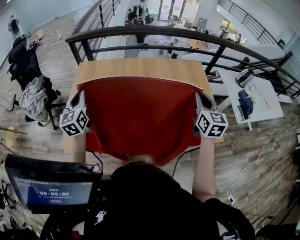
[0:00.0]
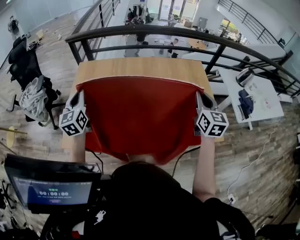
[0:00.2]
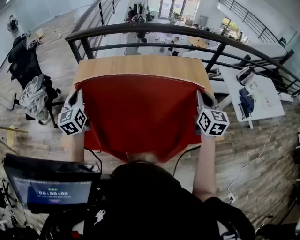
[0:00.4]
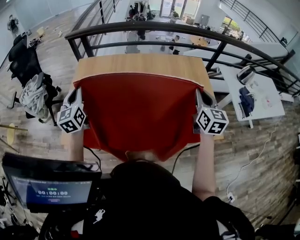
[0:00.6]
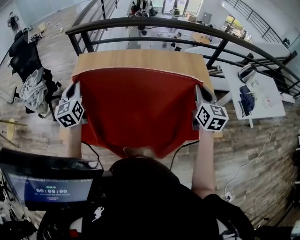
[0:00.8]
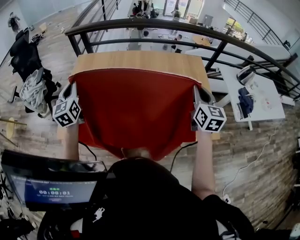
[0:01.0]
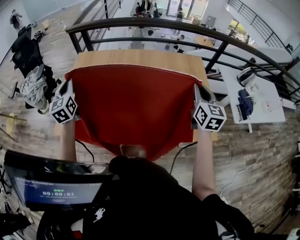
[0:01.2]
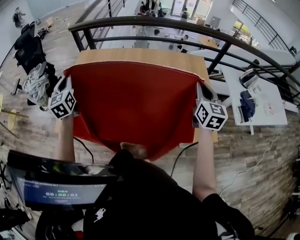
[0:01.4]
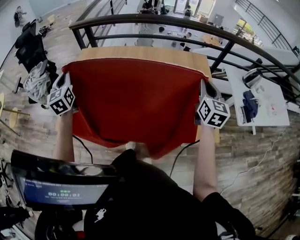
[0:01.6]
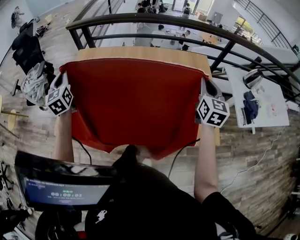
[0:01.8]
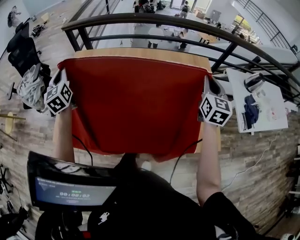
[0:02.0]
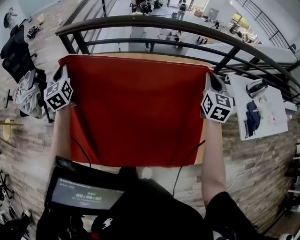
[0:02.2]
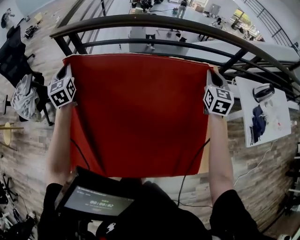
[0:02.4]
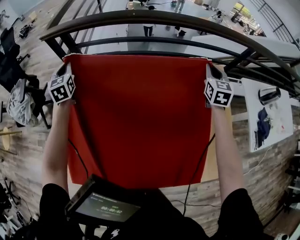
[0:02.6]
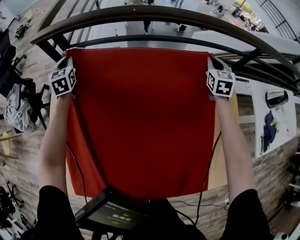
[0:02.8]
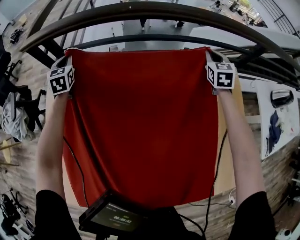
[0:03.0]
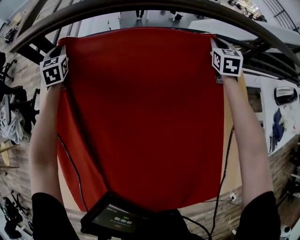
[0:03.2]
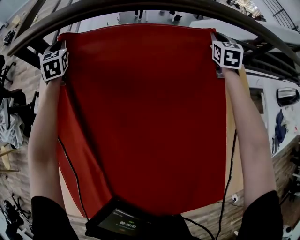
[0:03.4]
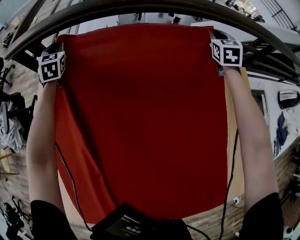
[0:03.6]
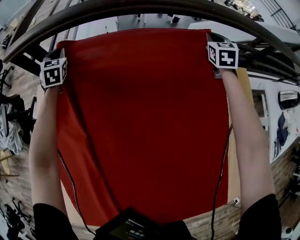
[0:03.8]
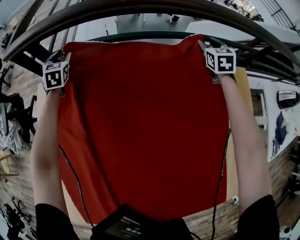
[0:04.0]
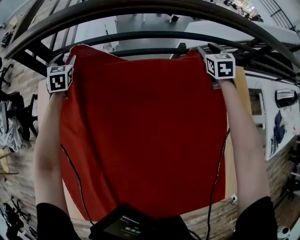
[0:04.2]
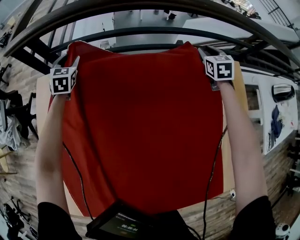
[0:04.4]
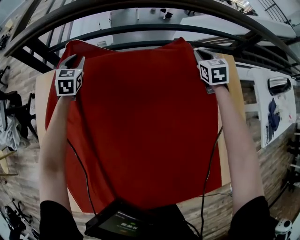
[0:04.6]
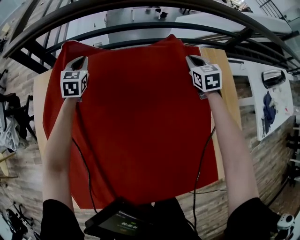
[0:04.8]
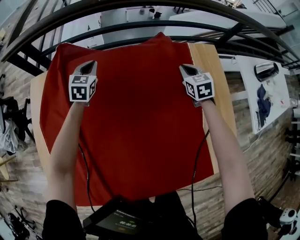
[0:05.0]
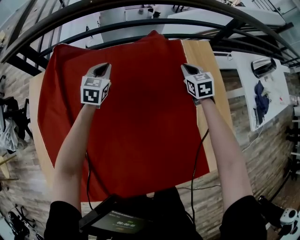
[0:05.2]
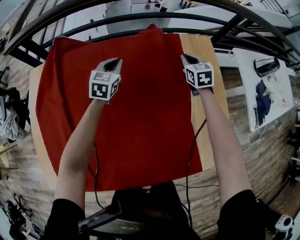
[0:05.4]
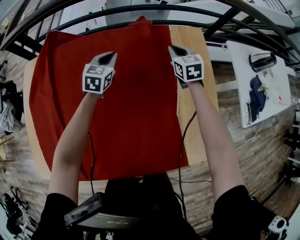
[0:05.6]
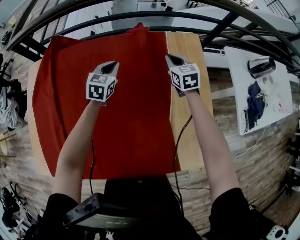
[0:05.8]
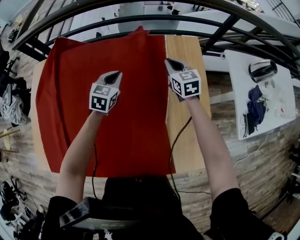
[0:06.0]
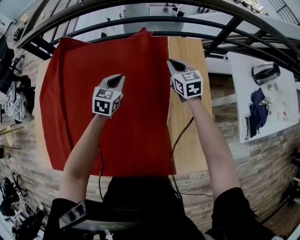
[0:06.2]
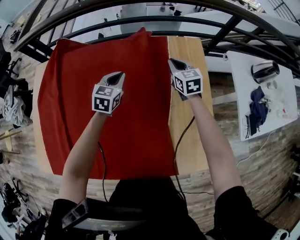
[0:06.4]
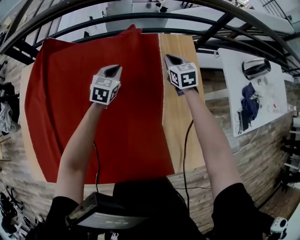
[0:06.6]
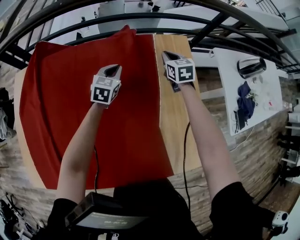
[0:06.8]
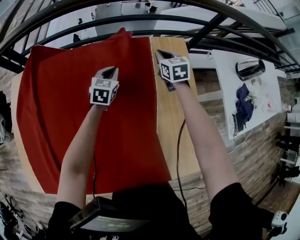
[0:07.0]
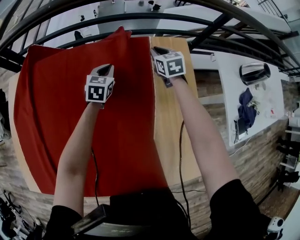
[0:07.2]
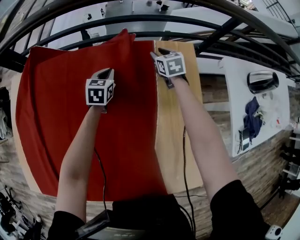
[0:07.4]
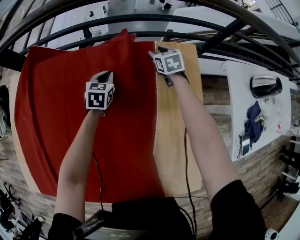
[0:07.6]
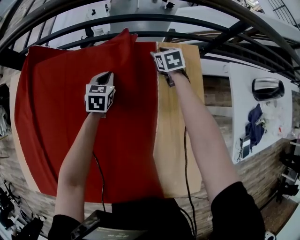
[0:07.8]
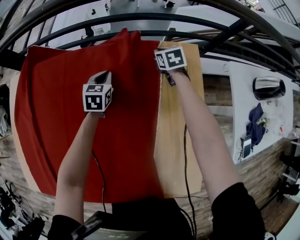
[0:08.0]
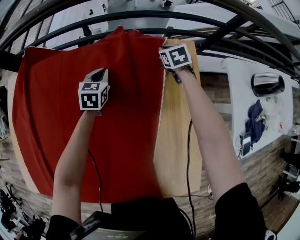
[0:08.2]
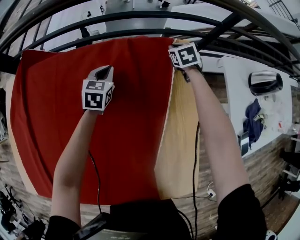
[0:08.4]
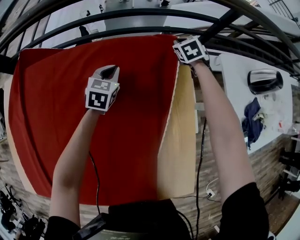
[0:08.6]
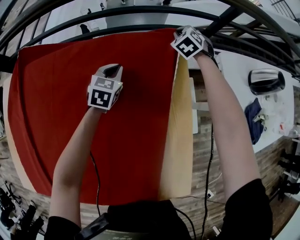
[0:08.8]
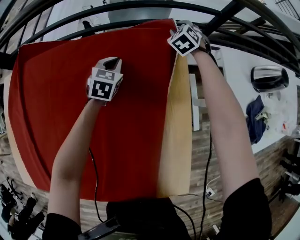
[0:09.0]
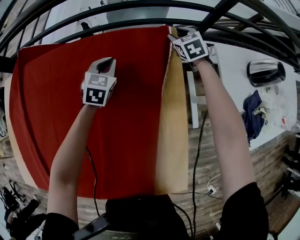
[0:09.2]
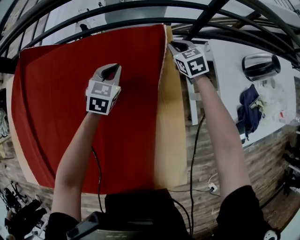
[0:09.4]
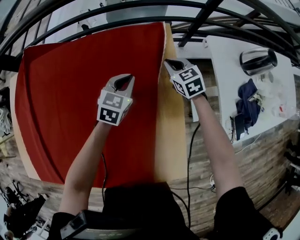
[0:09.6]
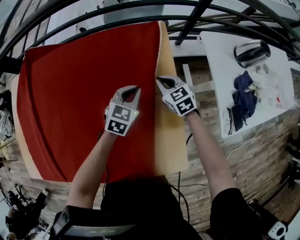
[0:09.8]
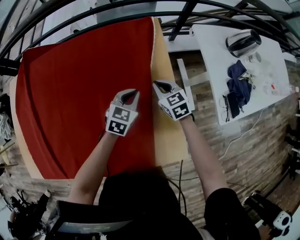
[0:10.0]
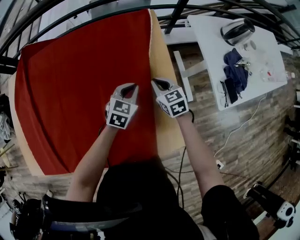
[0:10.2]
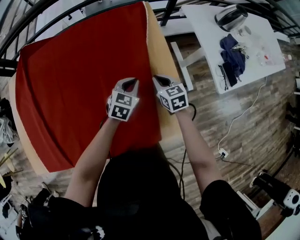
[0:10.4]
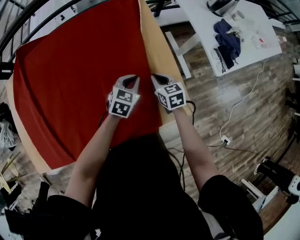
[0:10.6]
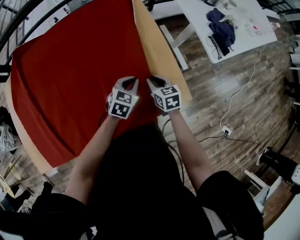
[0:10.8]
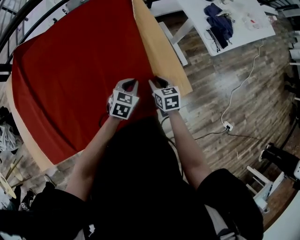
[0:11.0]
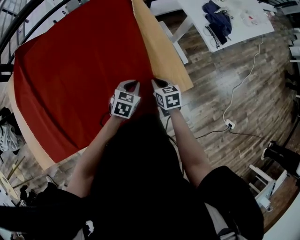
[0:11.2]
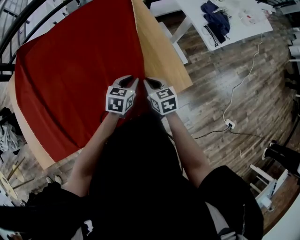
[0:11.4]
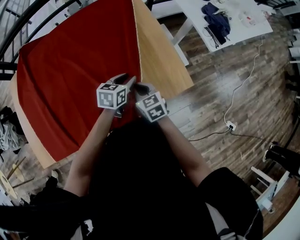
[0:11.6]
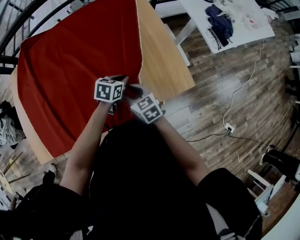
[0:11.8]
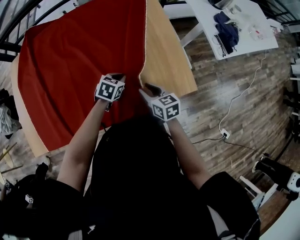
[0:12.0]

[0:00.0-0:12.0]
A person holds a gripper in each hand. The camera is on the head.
0:00.0 to 0:01.6: The right gripper moves to the right, roughly 10 cm.
0:01.6 to 0:03.0: The two grippers travel together, forward, about 60 cm. The right gripper turns by approximately 30 degrees. The left gripper rotates roughly 30 degrees.
0:03.0 to 0:04.4: Both grippers travel together downward, roughly 10 cm. The left gripper opens its fingers; the right gripper moves roughly 10 cm forward and comes back, and opens.
0:04.4 to 0:06.0: The left gripper goes roughly 60 cm to the right and backward, rotates approximately 20 degrees, and closes its fingers. Meanwhile the right gripper heads backward and to the right, covering roughly 25 cm, turns by roughly 20 degrees, and closes its fingers.
0:06.0 to 0:07.6: The grippers both shift forward and downward by roughly 20 cm. The right gripper opens its fingers.
0:07.6 to 0:09.0: The two grippers go about 15 cm to the right. The right gripper turns by about 40 degrees, and closes, then reopens.
0:09.0 to 0:10.4: Both grippers move backward, some 40 cm. The right gripper rolls clockwise, seen from behind, by approximately 50 degrees, and closes its fingers. The left gripper changes its angle by approximately 20 degrees.
0:10.4 to 0:12.0: The left gripper moves backward and to the left, about 20 cm, and opens and closes again. The right gripper moves backward, some 25 cm, and opens up.

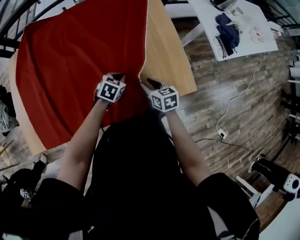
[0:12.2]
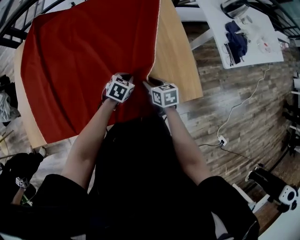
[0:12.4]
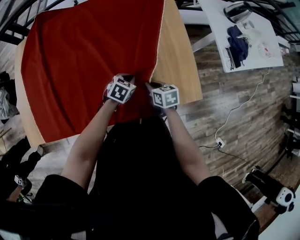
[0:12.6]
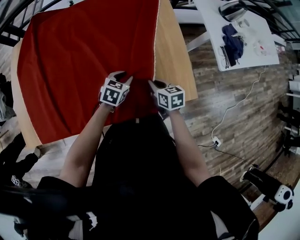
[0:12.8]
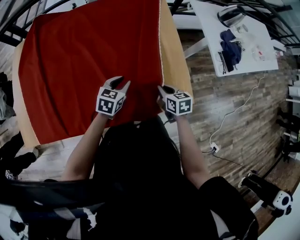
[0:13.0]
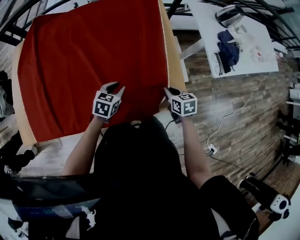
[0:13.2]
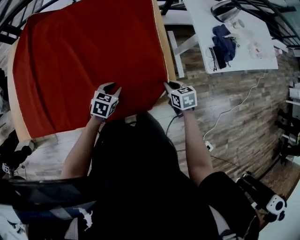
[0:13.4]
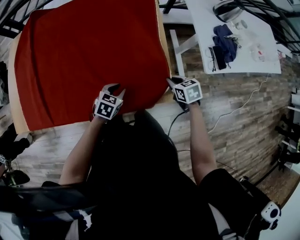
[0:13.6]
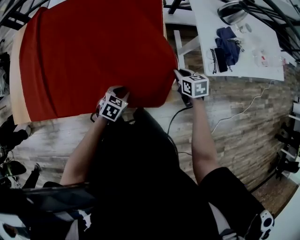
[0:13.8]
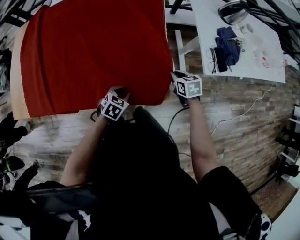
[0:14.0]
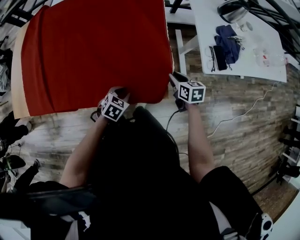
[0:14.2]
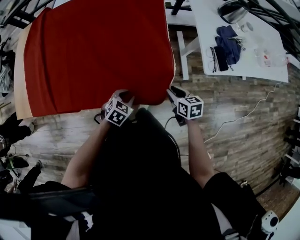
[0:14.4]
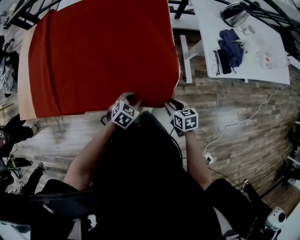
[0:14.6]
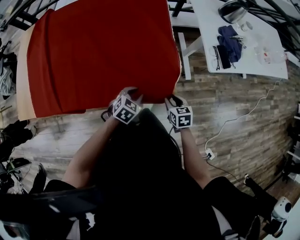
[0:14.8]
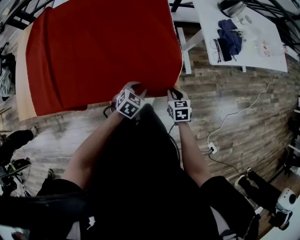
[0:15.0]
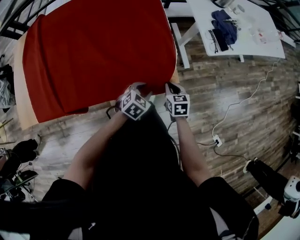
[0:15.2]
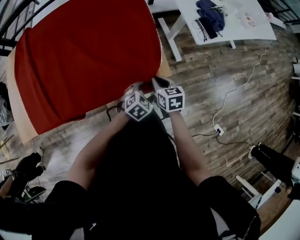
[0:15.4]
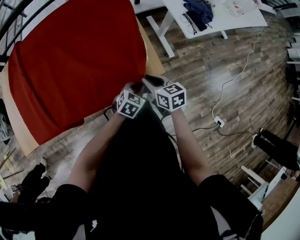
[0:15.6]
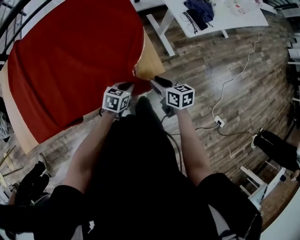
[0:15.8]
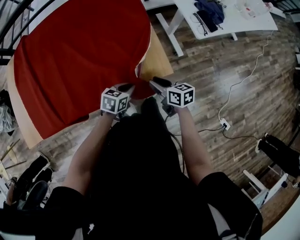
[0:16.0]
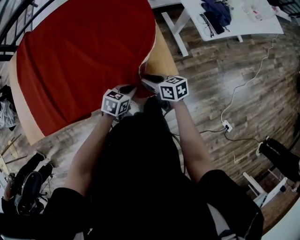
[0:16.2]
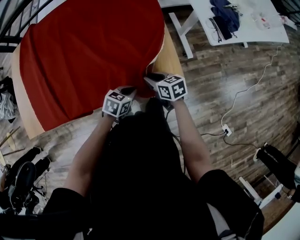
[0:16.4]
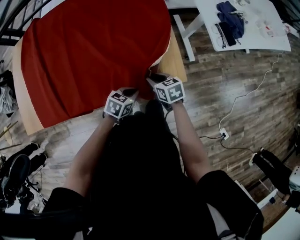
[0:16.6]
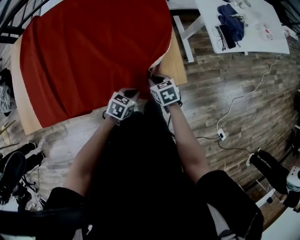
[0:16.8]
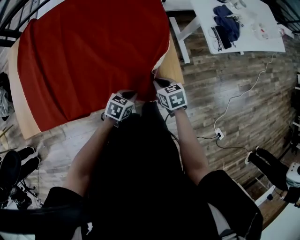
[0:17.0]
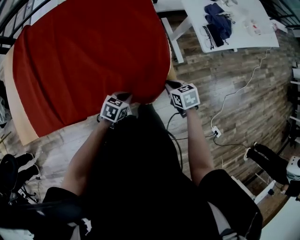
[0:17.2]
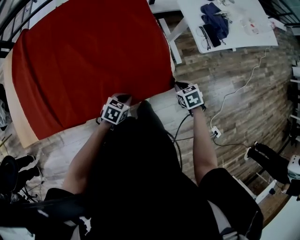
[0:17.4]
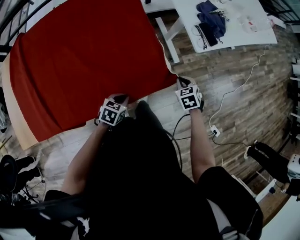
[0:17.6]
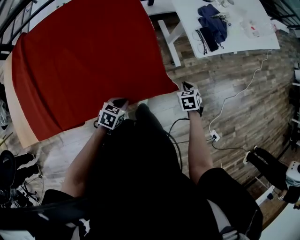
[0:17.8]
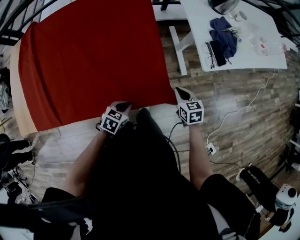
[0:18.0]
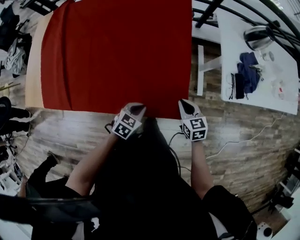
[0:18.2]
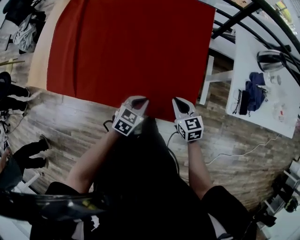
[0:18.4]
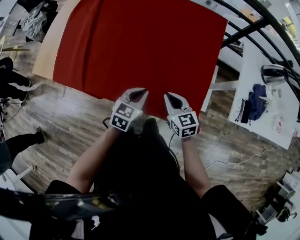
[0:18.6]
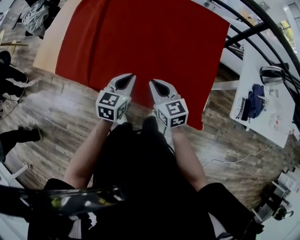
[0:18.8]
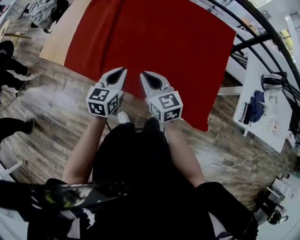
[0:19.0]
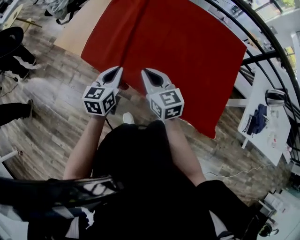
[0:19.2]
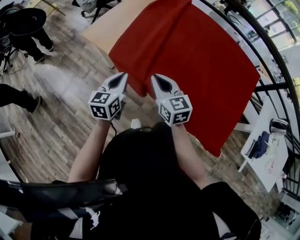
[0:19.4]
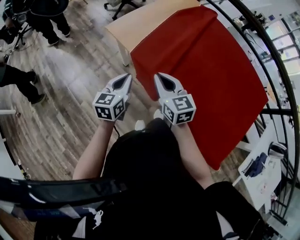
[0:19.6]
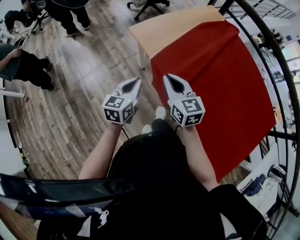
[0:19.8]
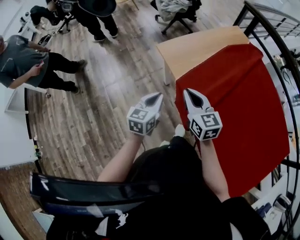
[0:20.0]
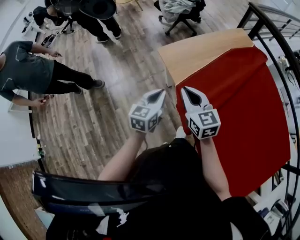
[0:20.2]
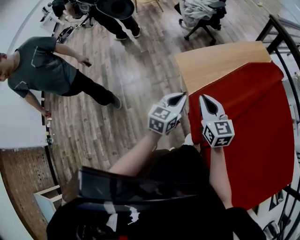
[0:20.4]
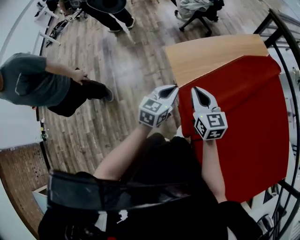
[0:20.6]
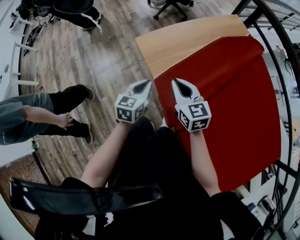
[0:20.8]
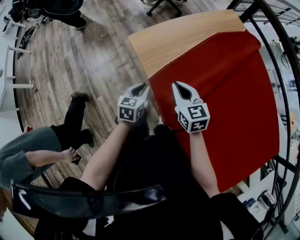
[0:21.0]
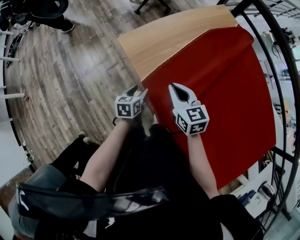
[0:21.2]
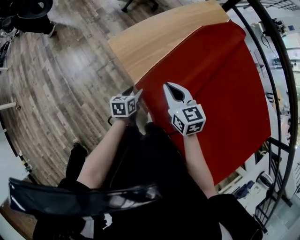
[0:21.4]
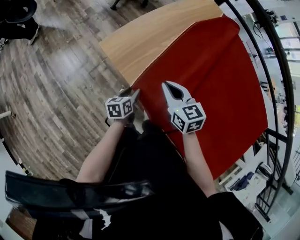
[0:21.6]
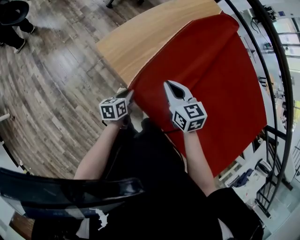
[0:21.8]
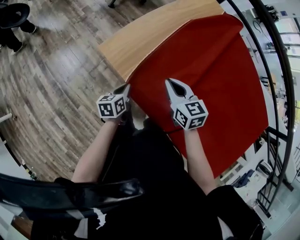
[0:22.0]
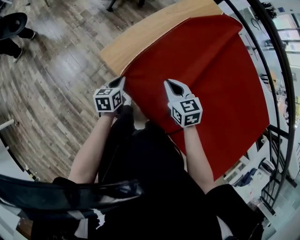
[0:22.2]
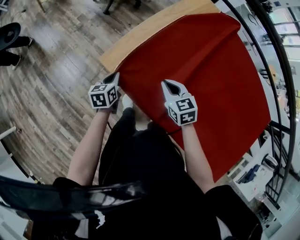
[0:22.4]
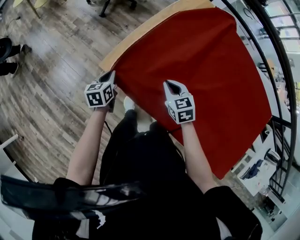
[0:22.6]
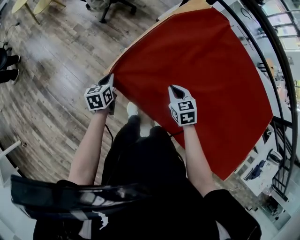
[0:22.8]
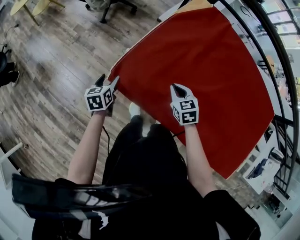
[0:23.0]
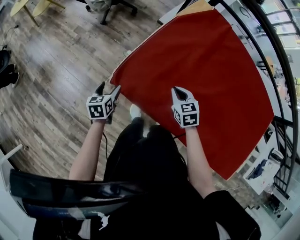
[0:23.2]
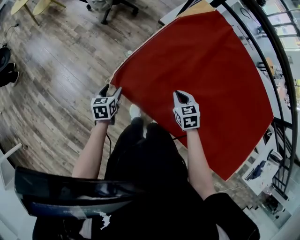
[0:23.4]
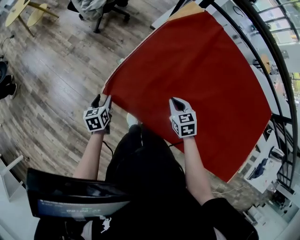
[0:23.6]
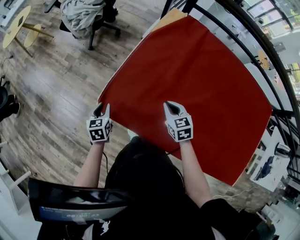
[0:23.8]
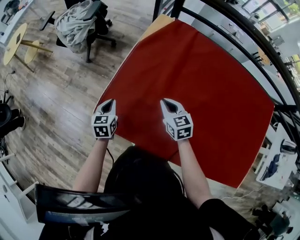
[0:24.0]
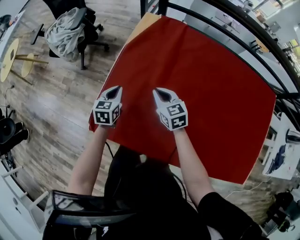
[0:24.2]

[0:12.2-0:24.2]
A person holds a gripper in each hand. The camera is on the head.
0:12.2 to 0:13.8: The left gripper shifts about 15 cm to the right and backward, and opens up, while the right gripper moves to the right, approximately 25 cm, and closes up.
0:13.8 to 0:15.2: The right gripper is displaced backward by some 15 cm, and opens and closes again. The left gripper goes some 10 cm to the right and backward.
0:15.2 to 0:16.6: The left gripper moves to the left, approximately 10 cm, changes its angle by approximately 20 degrees, and closes up. The right gripper goes left and right, about 10 cm each way, reversing 2 times, and rotates about 20 degrees.
0:16.6 to 0:18.2: The right gripper closes; the left gripper shifts by some 5 cm.
0:18.2 to 0:19.8: The pair of grippers is taken some 70 cm. The left gripper changes its angle by approximately 80 degrees; the right gripper turns by about 60 degrees.
0:19.8 to 0:21.2: The right gripper moves forward, to the right and downward, about 20 cm; the left gripper travels downward and forward by approximately 20 cm, turns by approximately 30 degrees, and opens its fingers.
0:21.2 to 0:22.6: The right gripper shifts about 15 cm forward and downward, and swivels approximately 20 degrees, while the left gripper heads forward and to the left, covering roughly 25 cm, and closes up.
0:22.6 to 0:24.2: The left gripper heads to the right and forward, covering approximately 25 cm, swivels roughly 30 degrees, and opens and closes again, while the right gripper shifts roughly 15 cm forward and to the right, and swivels some 20 degrees.
